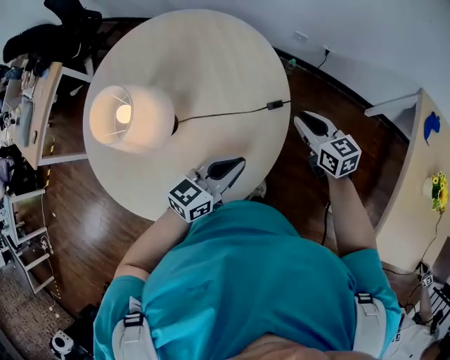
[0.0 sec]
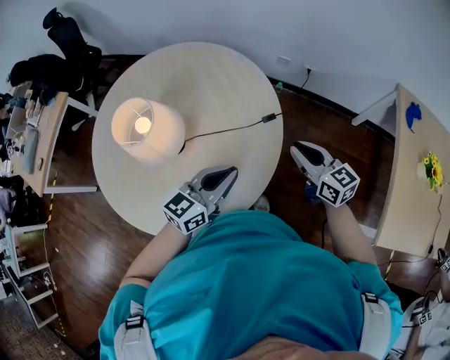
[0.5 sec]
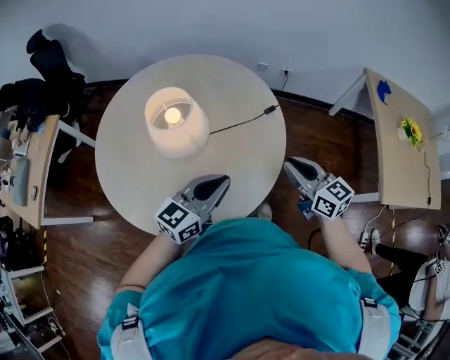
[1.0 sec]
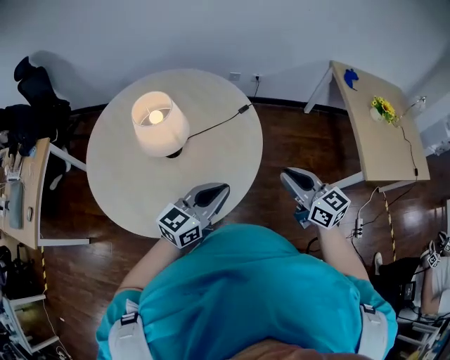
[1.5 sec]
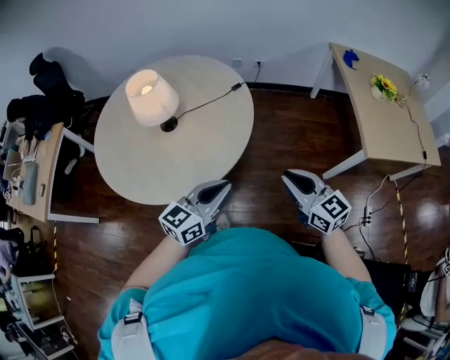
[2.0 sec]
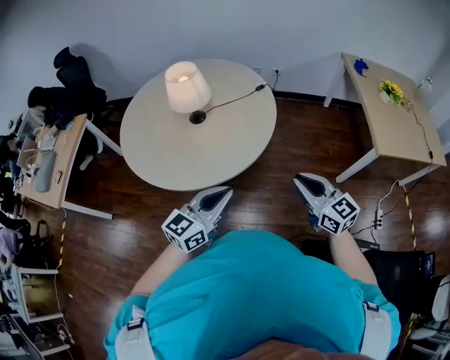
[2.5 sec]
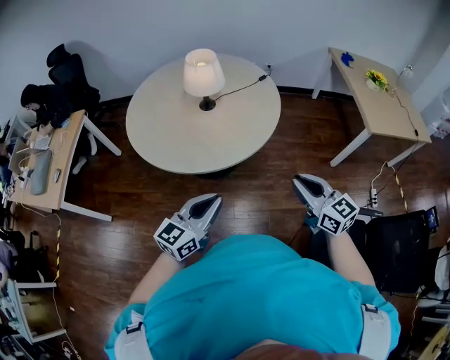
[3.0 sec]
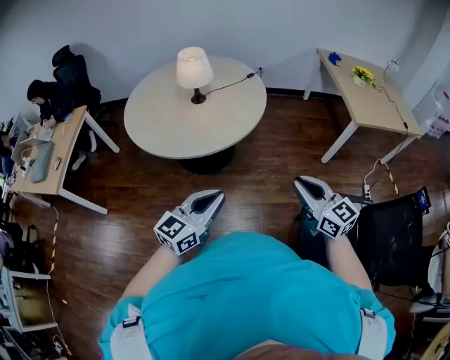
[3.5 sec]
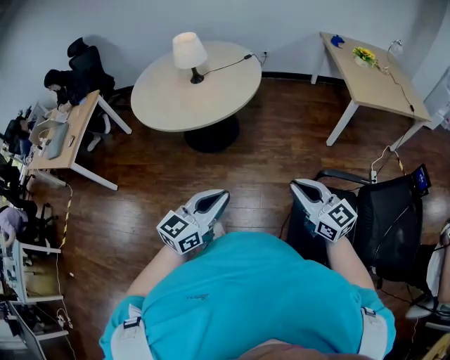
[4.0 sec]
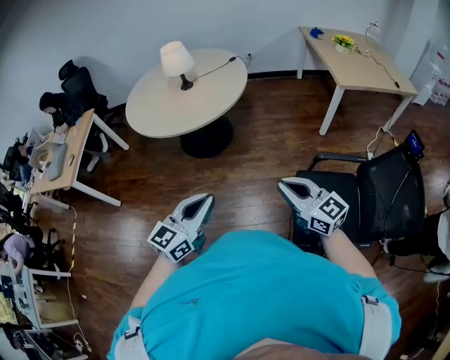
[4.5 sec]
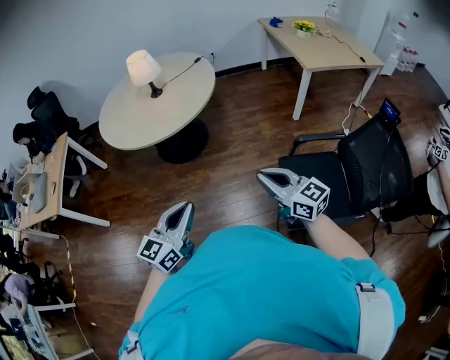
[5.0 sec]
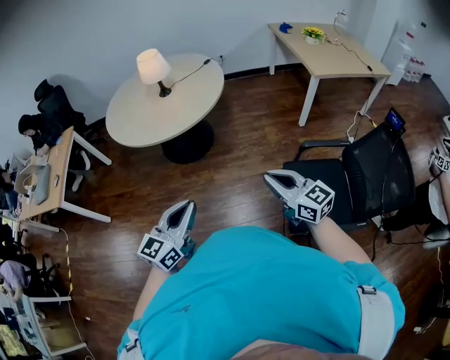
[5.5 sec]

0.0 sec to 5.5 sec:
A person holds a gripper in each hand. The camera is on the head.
0.0 sec to 2.0 sec: The two grippers travel together, backward, approximately 60 cm. The left gripper turns by roughly 20 degrees; the right gripper changes its angle by roughly 30 degrees.
2.0 sec to 3.5 sec: The two grippers travel together, backward and to the left, some 50 cm.
3.5 sec to 5.5 sec: Both grippers travel together backward, roughly 25 cm.

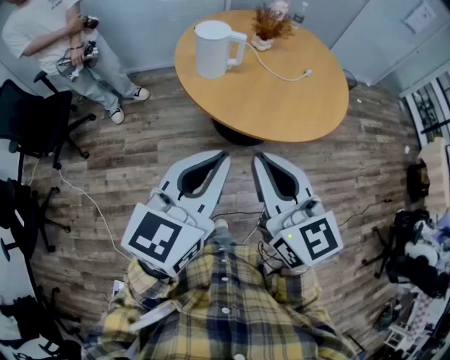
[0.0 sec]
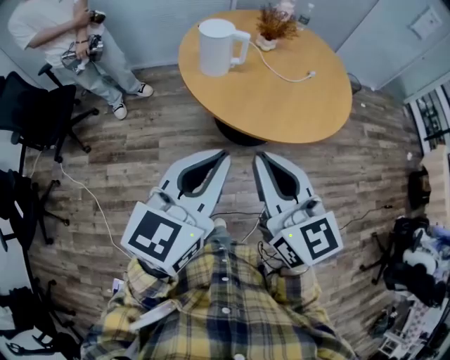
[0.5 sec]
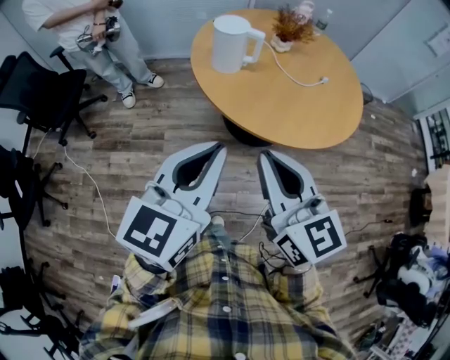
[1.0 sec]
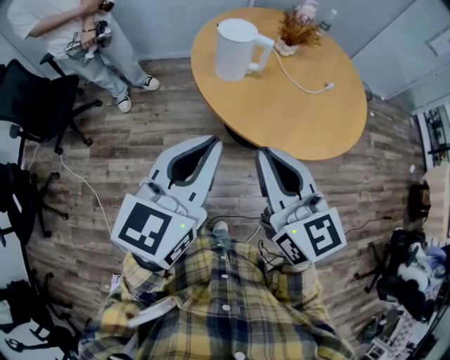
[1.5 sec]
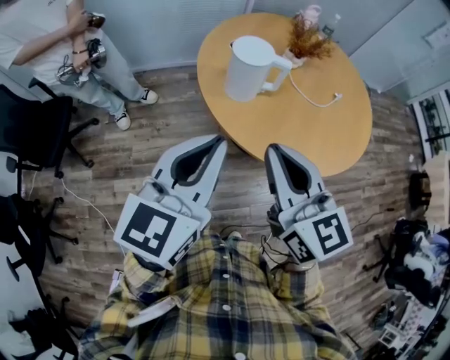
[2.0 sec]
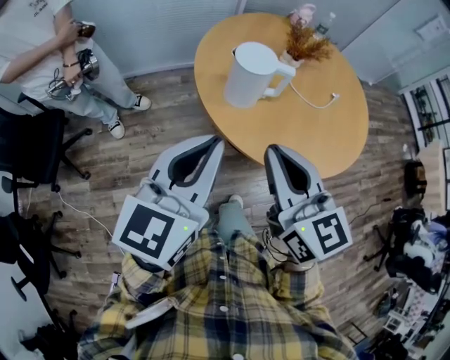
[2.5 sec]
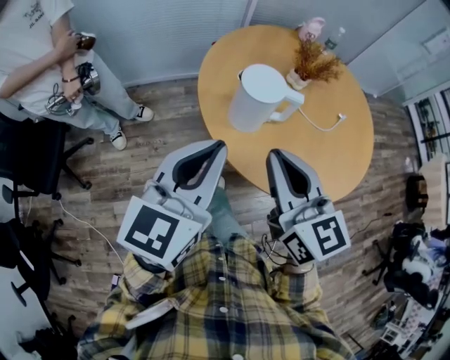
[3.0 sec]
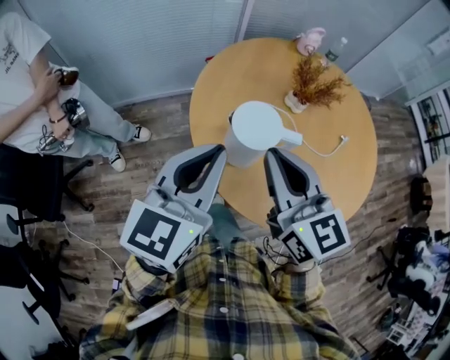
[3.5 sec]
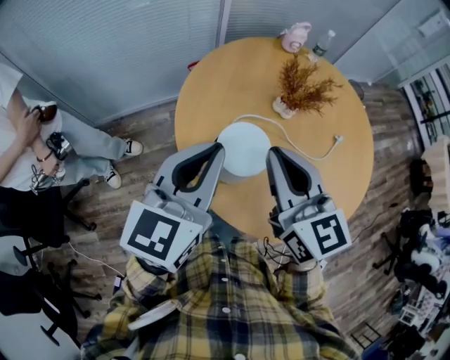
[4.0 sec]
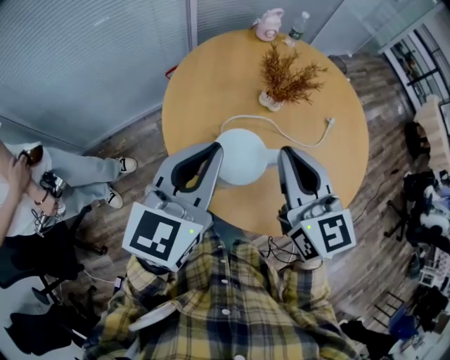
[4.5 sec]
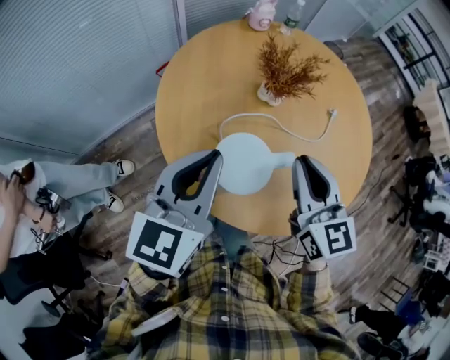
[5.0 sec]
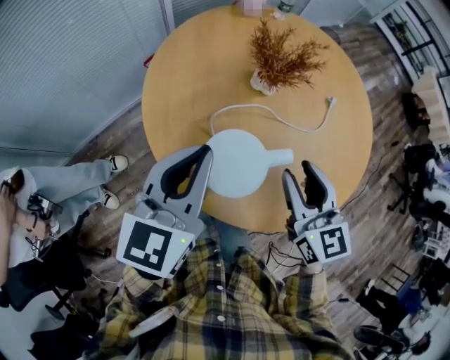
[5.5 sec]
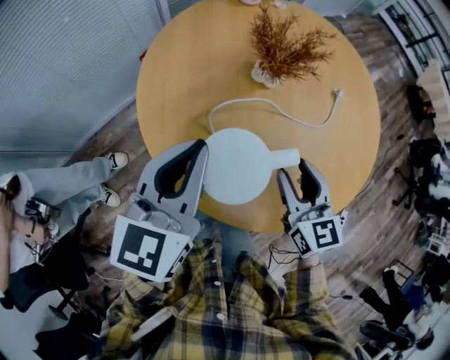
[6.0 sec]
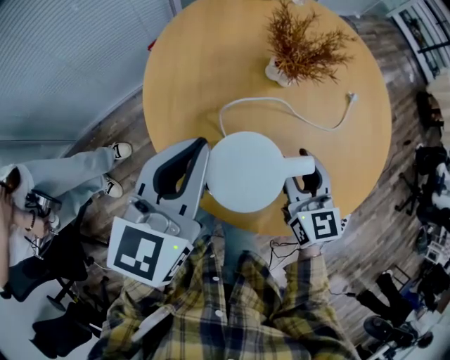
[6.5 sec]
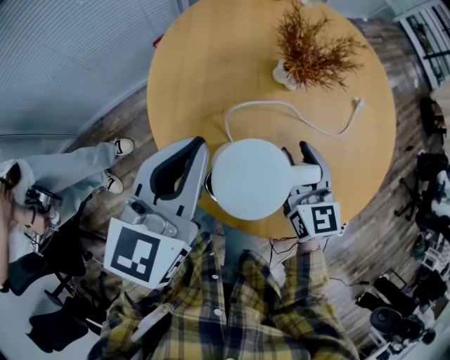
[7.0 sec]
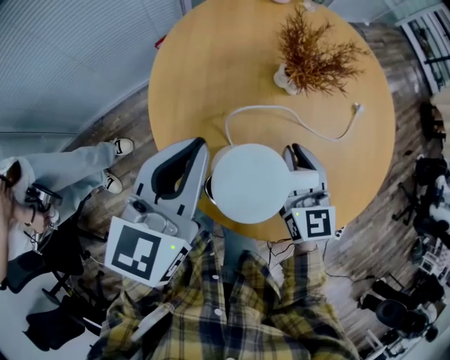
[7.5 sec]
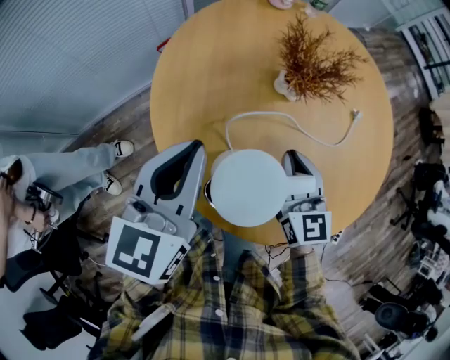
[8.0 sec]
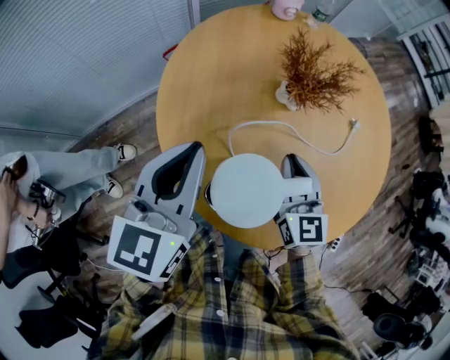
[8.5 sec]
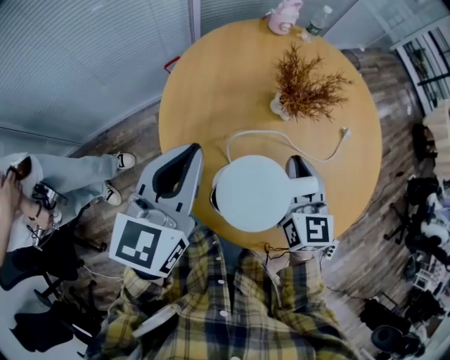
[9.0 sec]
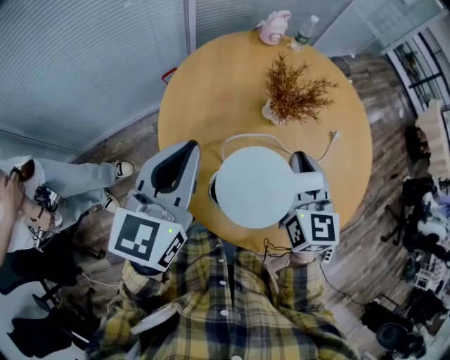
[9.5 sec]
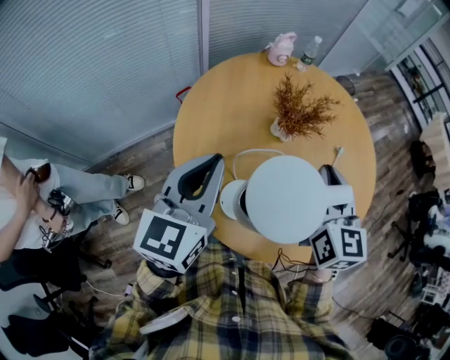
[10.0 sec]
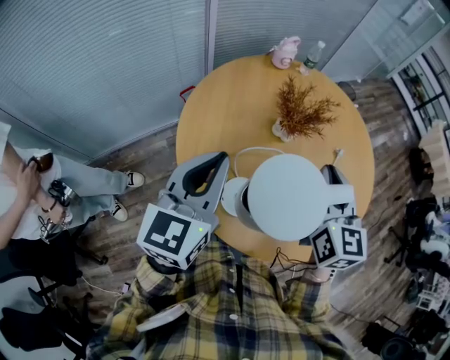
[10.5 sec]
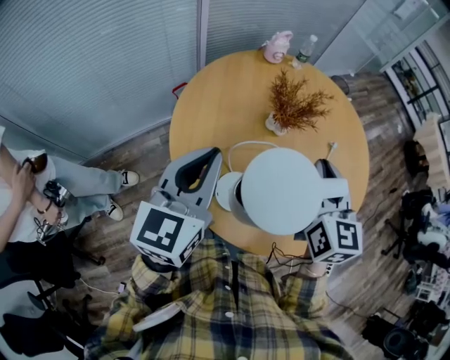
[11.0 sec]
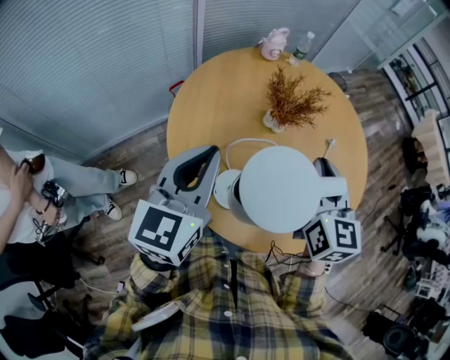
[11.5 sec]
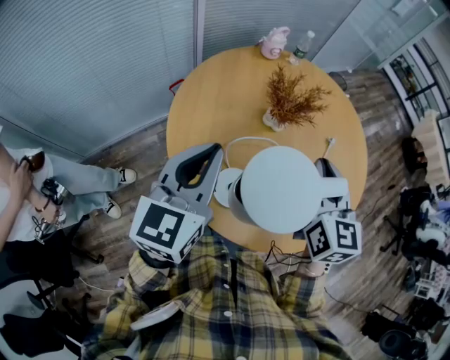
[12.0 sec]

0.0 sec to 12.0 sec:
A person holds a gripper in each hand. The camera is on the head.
0.0 sec to 2.0 sec: The grippers both shift forward and to the left by approximately 20 cm.
2.0 sec to 4.0 sec: Both grippers travel together forward, roughly 30 cm.
4.0 sec to 6.0 sec: The right gripper moves downward and to the right, roughly 20 cm, rotates roughly 30 degrees, and opens its fingers. Meanwhile the left gripper heads downward and forward, covering approximately 10 cm.
6.0 sec to 8.0 sec: The right gripper shifts about 5 cm forward, and closes up. Meanwhile the left gripper changes place by about 5 cm.
8.0 sec to 10.0 sec: The left gripper goes about 10 cm upward. The right gripper heads upward, covering about 20 cm.
10.0 sec to 12.0 sec: The grippers stay close to where they were, moving slightly.

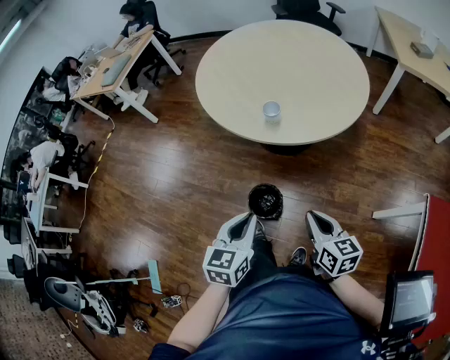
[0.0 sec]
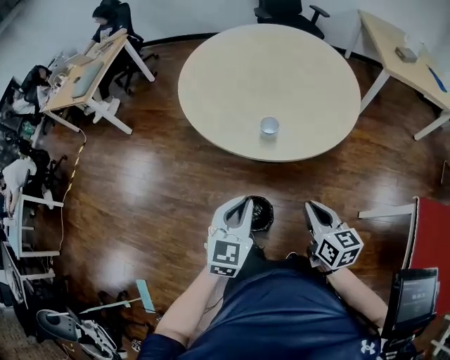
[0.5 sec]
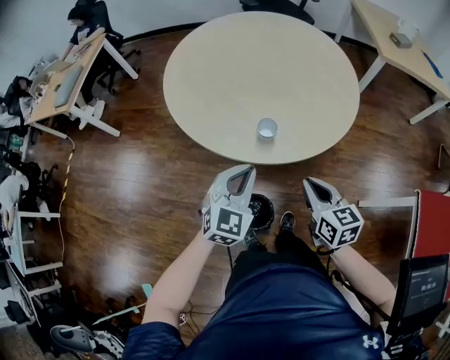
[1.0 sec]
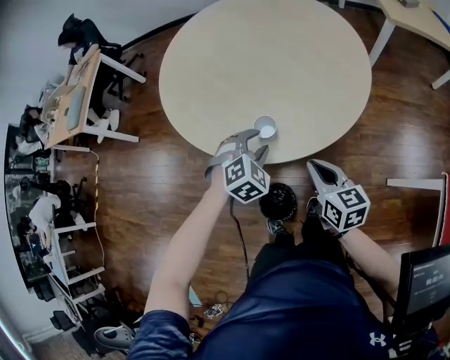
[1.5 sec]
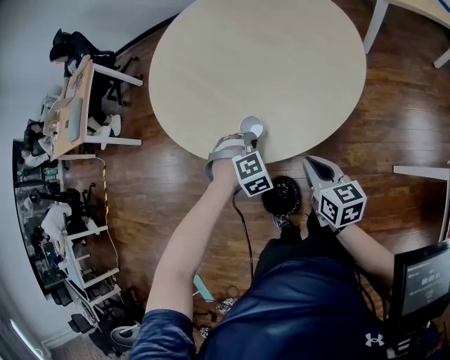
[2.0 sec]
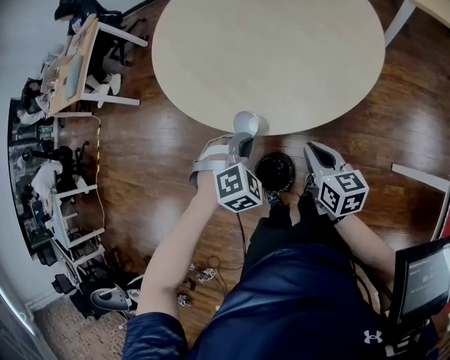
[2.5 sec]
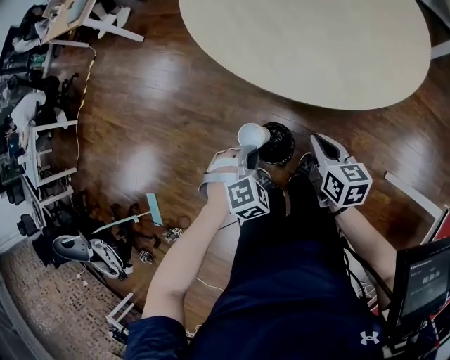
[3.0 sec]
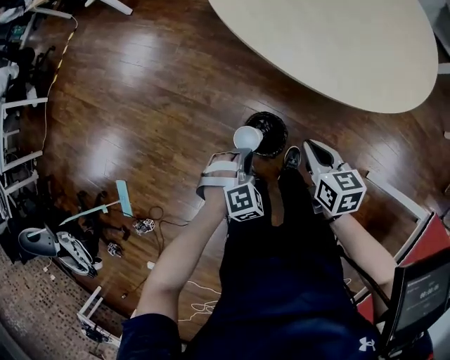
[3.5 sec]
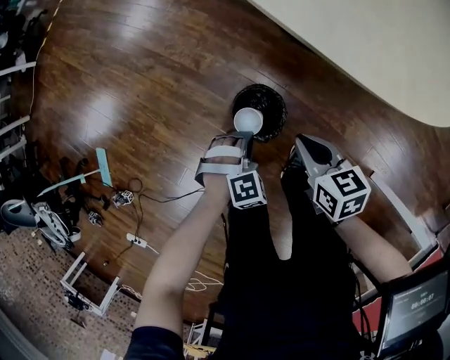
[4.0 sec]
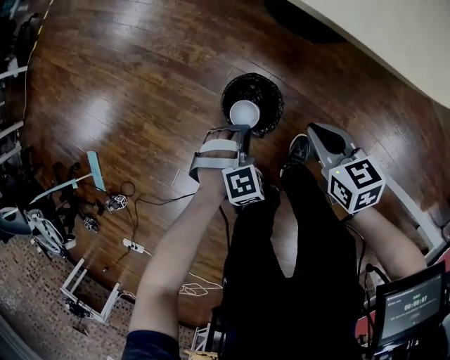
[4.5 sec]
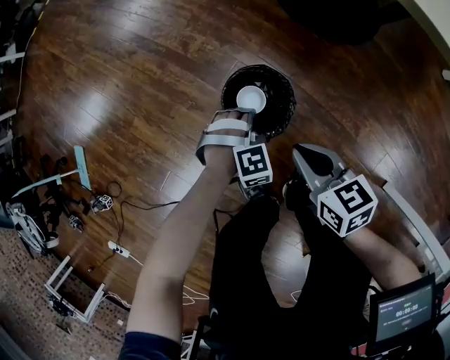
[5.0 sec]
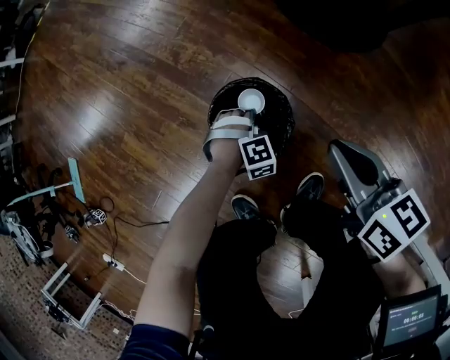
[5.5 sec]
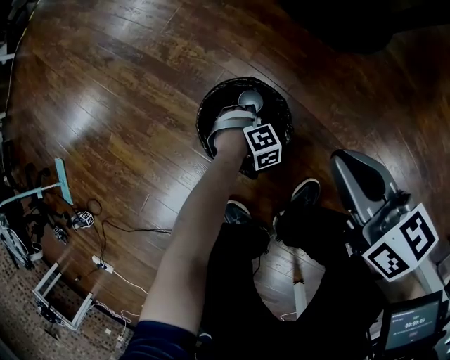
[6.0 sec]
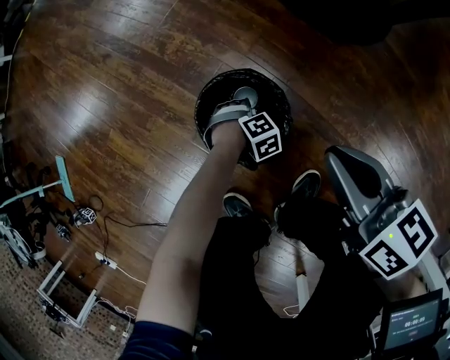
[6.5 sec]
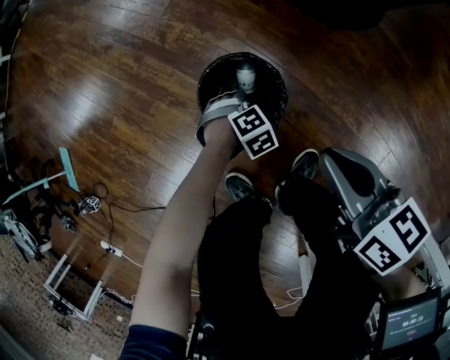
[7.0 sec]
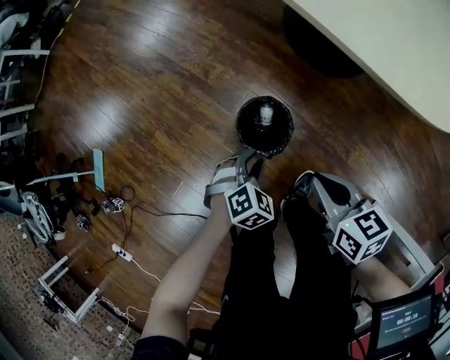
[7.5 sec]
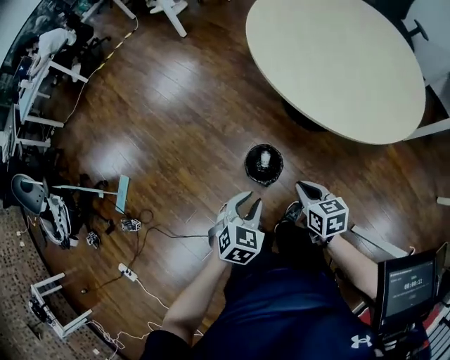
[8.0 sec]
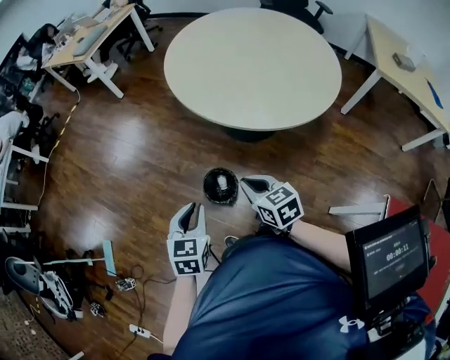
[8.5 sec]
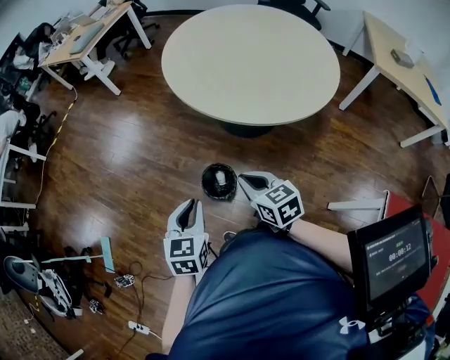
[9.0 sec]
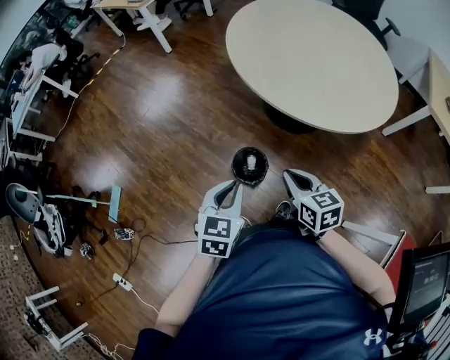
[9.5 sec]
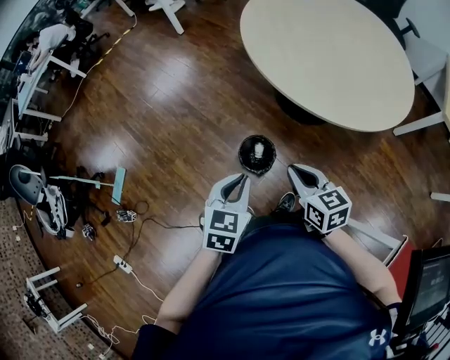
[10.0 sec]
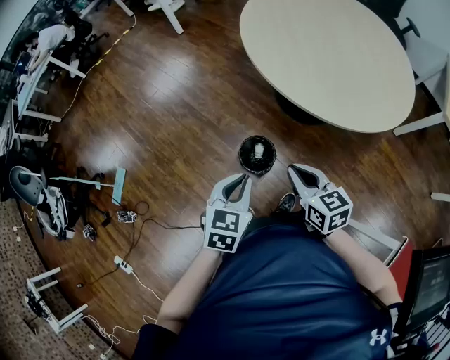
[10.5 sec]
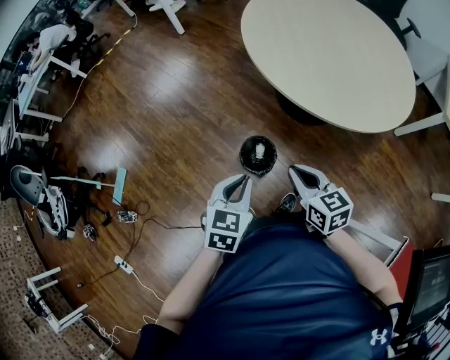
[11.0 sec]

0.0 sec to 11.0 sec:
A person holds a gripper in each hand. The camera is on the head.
0.0 sec to 2.0 sec: The left gripper shifts roughly 35 cm forward and downward, rolls clockwise, seen from behind, by approximately 90 degrees, and opens, then closes again, while the right gripper moves forward, about 25 cm.
2.0 sec to 3.5 sec: The left gripper shifts approximately 35 cm backward, to the left and downward, and swivels roughly 30 degrees, while the right gripper travels to the left, downward and backward by approximately 20 cm, and changes its angle by about 30 degrees.
3.5 sec to 5.5 sec: The right gripper heads downward, covering roughly 20 cm; the left gripper travels downward by approximately 40 cm.
5.5 sec to 7.5 sec: The left gripper moves upward, approximately 25 cm, rotates about 30 degrees, and opens; the right gripper is displaced upward by about 15 cm.
7.5 sec to 9.0 sec: The left gripper shifts approximately 40 cm upward, and tips its fingers upward by some 30 degrees; the right gripper shifts about 25 cm upward.
9.0 sec to 11.0 sec: The grippers make only small movements.
